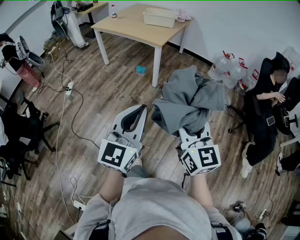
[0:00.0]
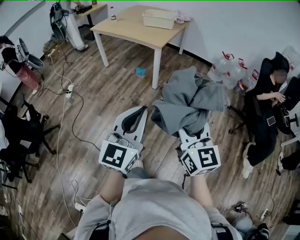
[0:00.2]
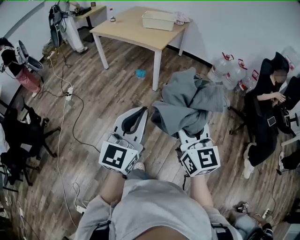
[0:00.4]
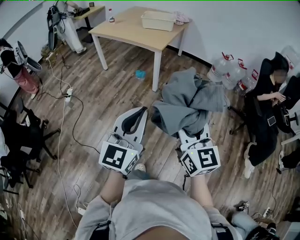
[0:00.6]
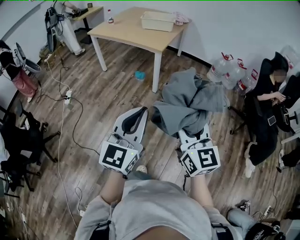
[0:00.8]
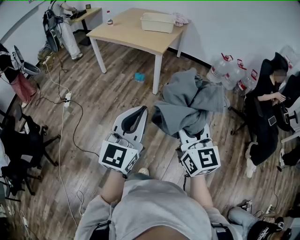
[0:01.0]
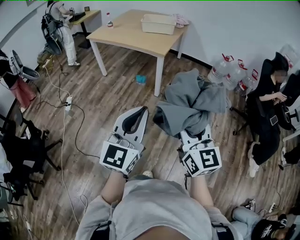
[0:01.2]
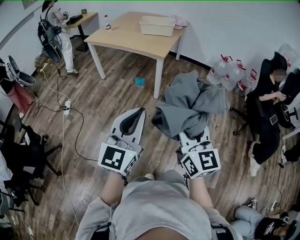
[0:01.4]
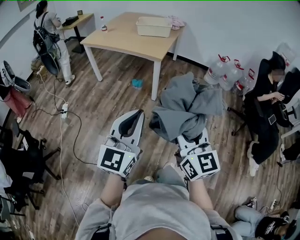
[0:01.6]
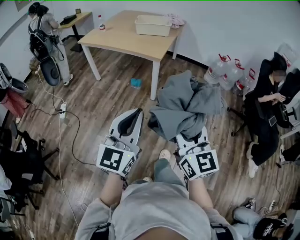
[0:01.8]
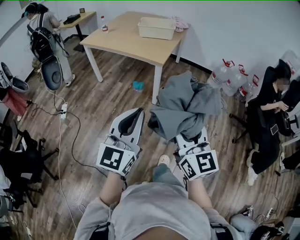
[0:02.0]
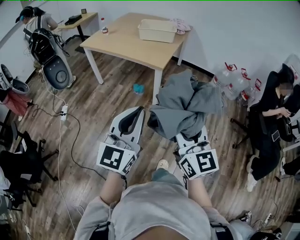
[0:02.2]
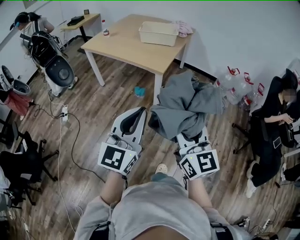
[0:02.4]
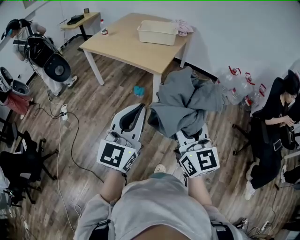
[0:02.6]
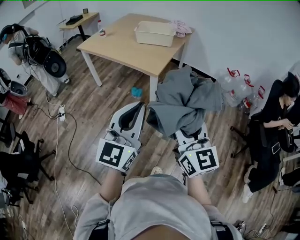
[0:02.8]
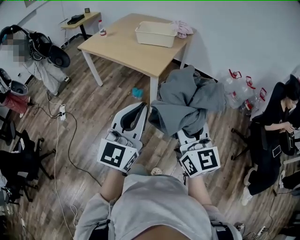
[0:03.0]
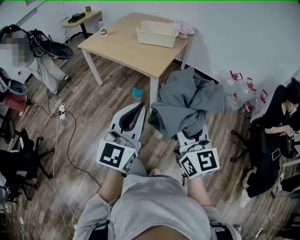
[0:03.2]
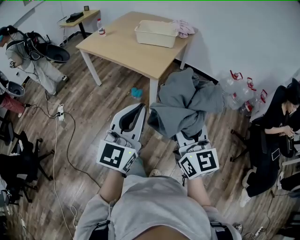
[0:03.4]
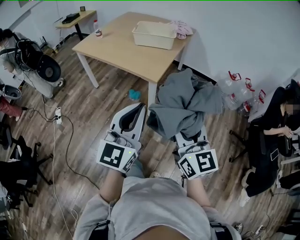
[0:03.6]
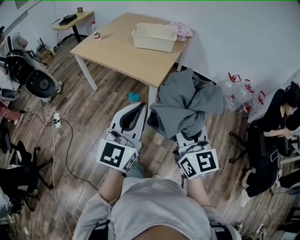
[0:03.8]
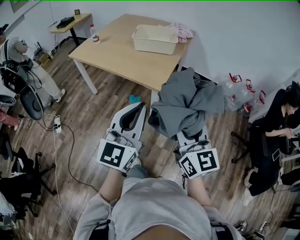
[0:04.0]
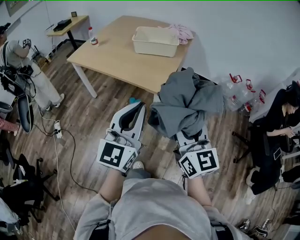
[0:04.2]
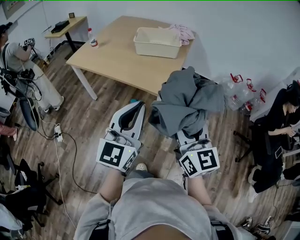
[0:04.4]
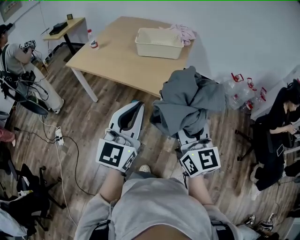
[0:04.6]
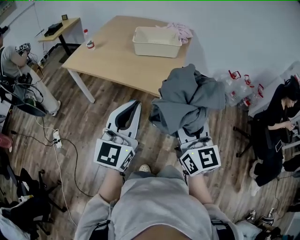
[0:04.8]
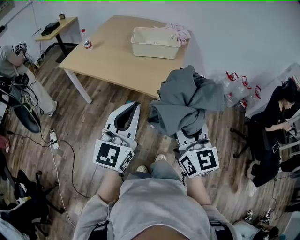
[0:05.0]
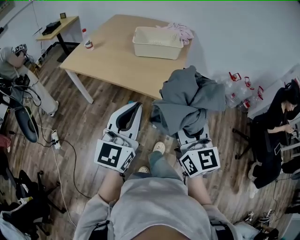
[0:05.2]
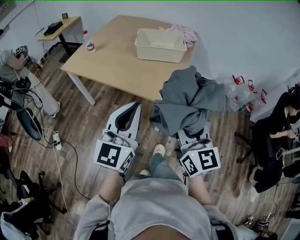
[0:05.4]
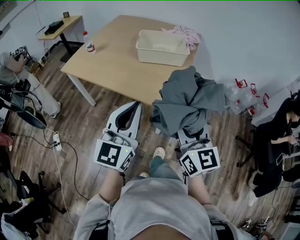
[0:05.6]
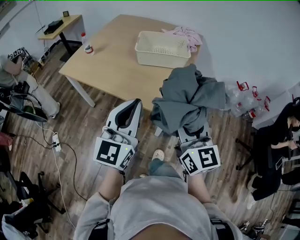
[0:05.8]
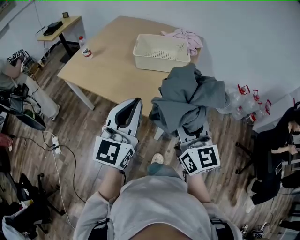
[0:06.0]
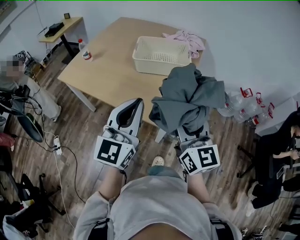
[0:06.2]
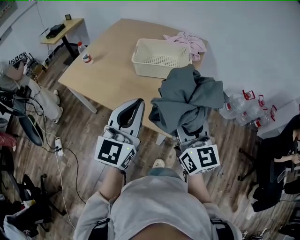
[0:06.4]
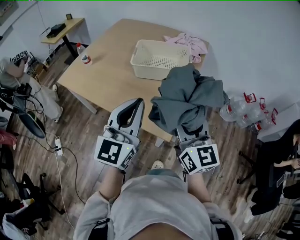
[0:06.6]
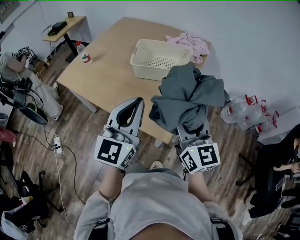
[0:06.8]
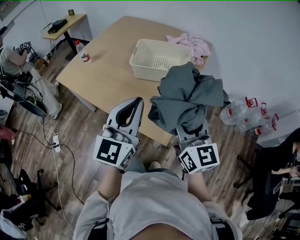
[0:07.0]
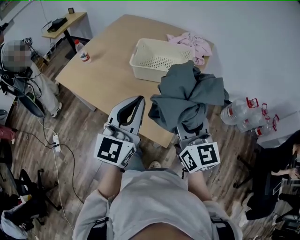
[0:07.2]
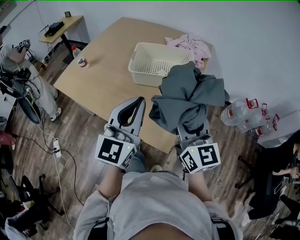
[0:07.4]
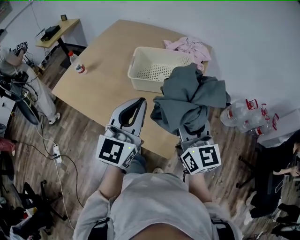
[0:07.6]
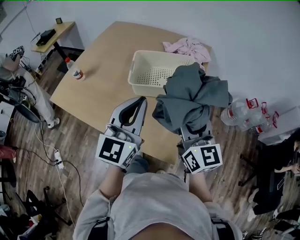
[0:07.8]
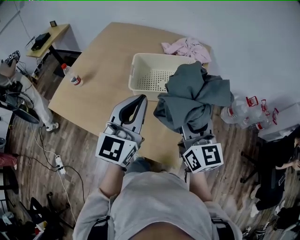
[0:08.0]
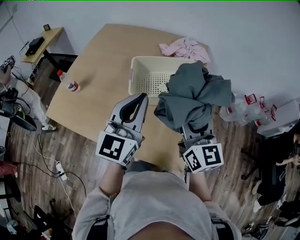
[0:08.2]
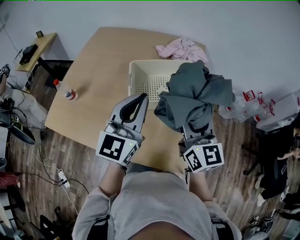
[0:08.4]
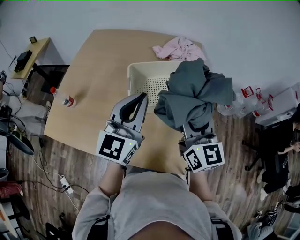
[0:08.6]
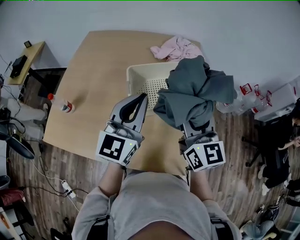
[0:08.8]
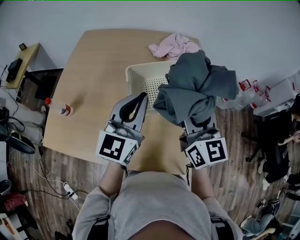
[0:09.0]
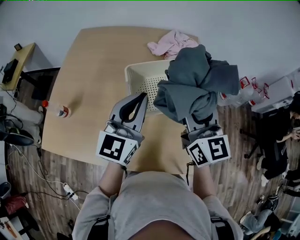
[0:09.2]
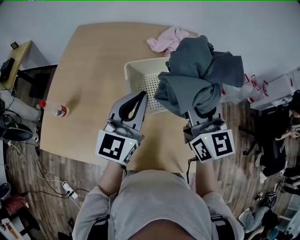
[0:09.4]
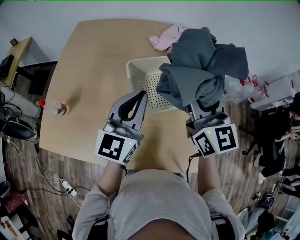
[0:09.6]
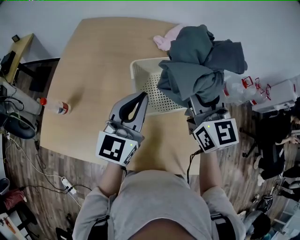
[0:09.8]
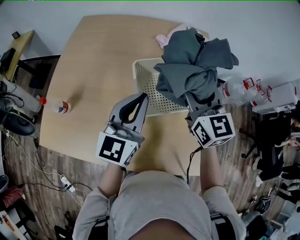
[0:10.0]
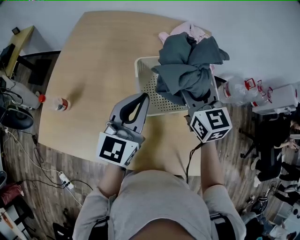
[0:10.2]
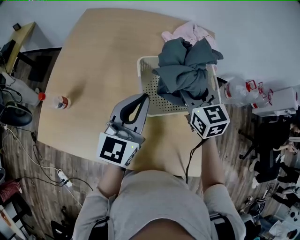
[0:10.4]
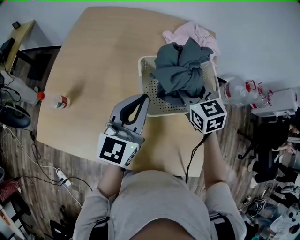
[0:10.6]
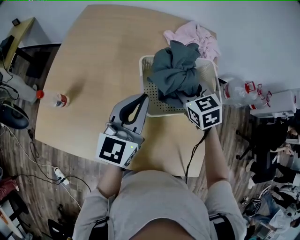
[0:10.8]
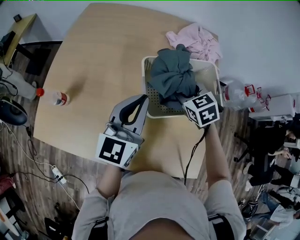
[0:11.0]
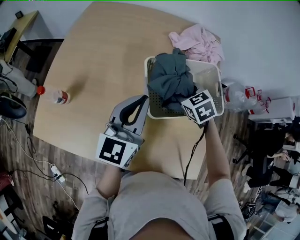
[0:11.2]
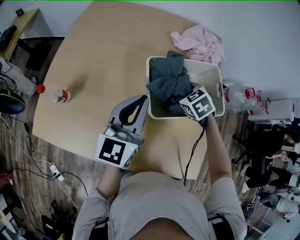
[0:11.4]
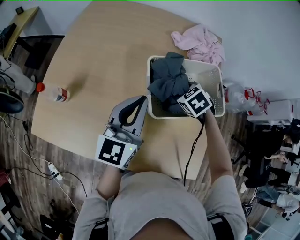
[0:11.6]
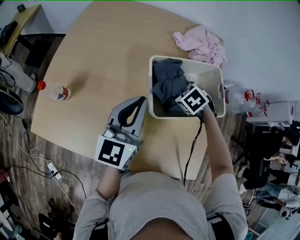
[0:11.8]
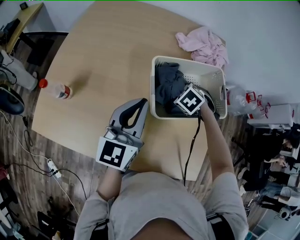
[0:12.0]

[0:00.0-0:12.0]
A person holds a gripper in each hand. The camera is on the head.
0.0 to 1.6 s: The right gripper shifts some 15 cm to the left and forward. The left gripper shifts approximately 20 cm forward and to the left.
1.6 to 3.0 s: The two grippers go approximately 25 cm forward and to the right.
3.0 to 4.4 s: The two grippers go roughly 25 cm forward and to the left.
4.4 to 6.0 s: Both grippers travel together forward, some 20 cm.
6.0 to 7.6 s: The two grippers go some 20 cm forward.
7.6 to 9.0 s: The two grippers go roughly 20 cm forward and to the left.
9.0 to 10.4 s: The right gripper is displaced forward, downward and to the left by approximately 20 cm, and changes its angle by some 30 degrees; the left gripper heads downward and to the left, covering some 10 cm.
10.4 to 12.0 s: The left gripper moves approximately 5 cm. Meanwhile the right gripper heads downward, covering roughly 20 cm, and tilts its fingers roughly 60 degrees downward.

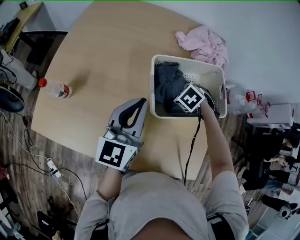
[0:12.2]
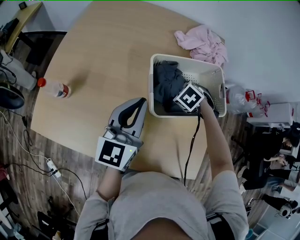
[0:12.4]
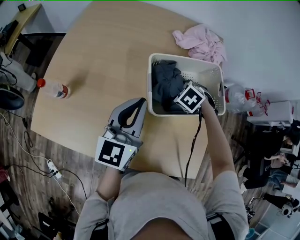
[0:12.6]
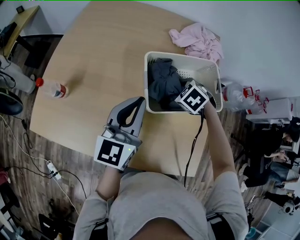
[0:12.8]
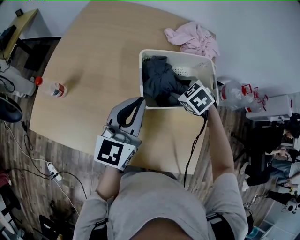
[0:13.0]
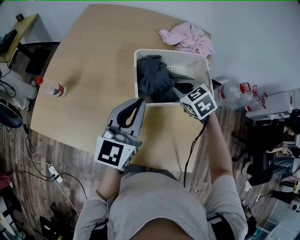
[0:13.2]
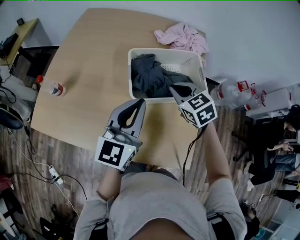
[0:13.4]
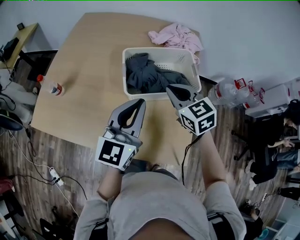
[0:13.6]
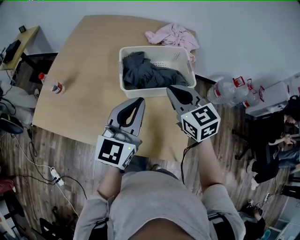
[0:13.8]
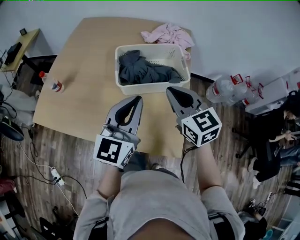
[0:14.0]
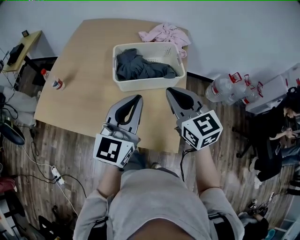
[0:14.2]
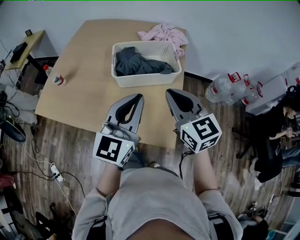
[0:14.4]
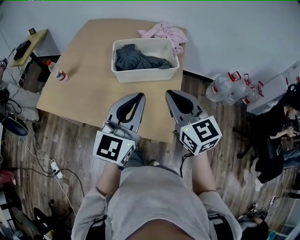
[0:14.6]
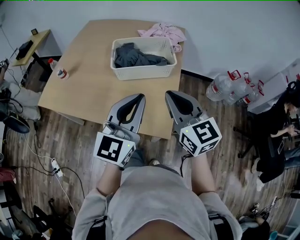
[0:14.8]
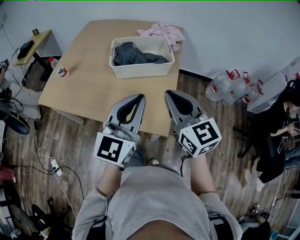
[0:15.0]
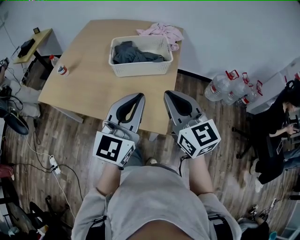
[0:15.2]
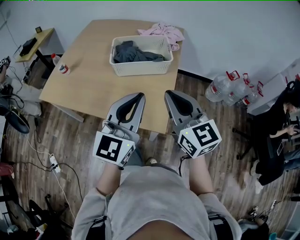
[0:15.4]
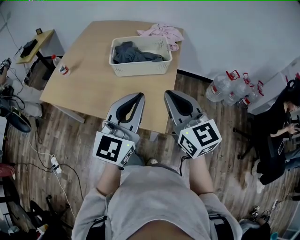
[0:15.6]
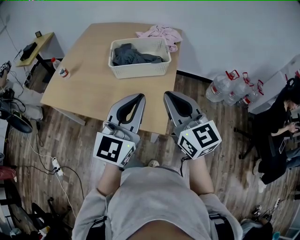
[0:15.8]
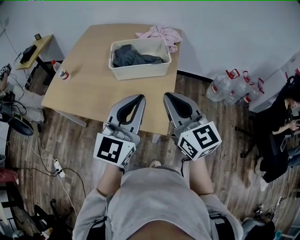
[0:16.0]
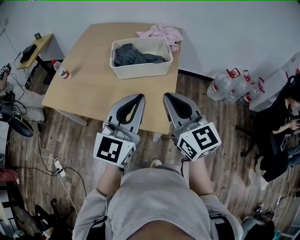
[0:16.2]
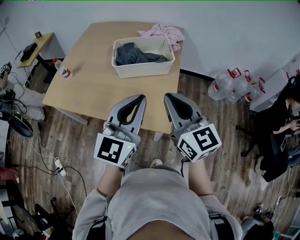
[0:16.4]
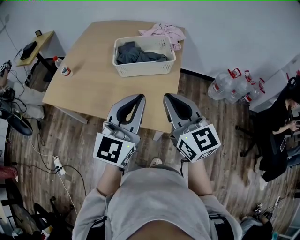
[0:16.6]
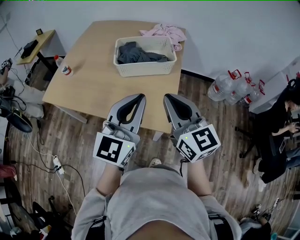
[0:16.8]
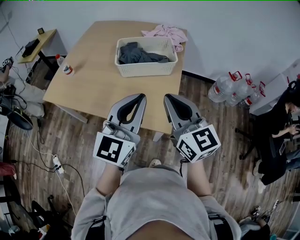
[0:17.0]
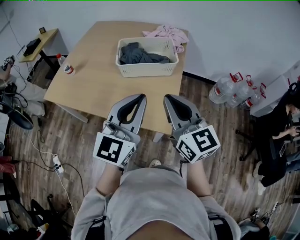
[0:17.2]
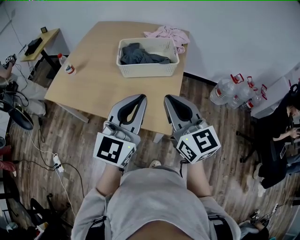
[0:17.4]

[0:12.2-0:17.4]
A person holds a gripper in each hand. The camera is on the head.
12.2 to 14.0 s: The right gripper heads upward, covering about 25 cm, tips its fingers upward by roughly 60 degrees, and closes up; the left gripper ends up some 25 cm from where it was.
14.0 to 15.6 s: The grippers both shift backward and to the right by approximately 20 cm.
15.6 to 17.4 s: The grippers move only a little.

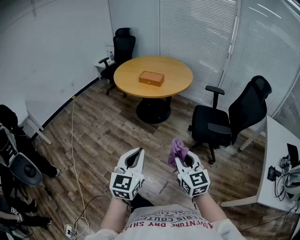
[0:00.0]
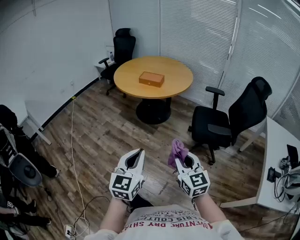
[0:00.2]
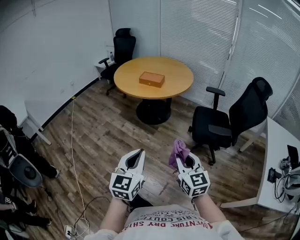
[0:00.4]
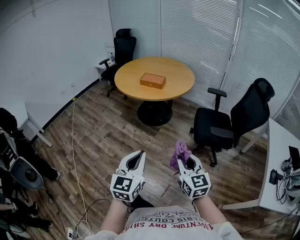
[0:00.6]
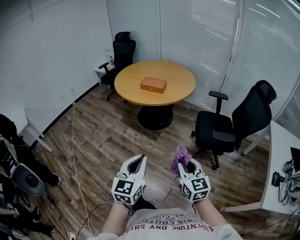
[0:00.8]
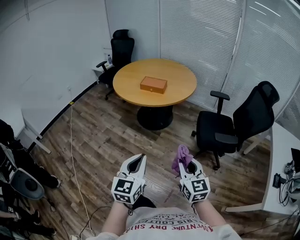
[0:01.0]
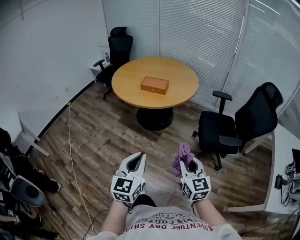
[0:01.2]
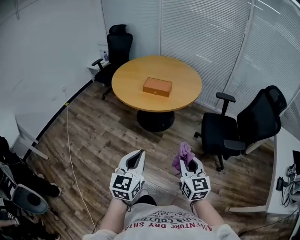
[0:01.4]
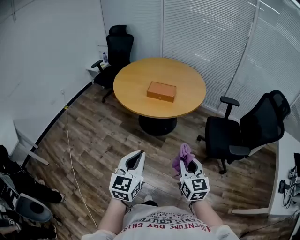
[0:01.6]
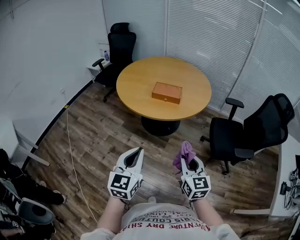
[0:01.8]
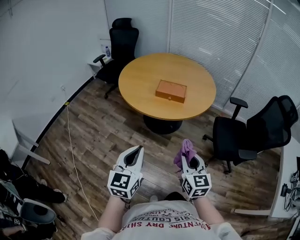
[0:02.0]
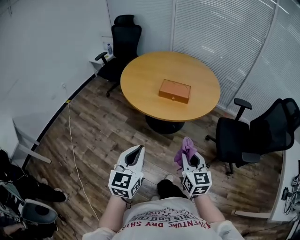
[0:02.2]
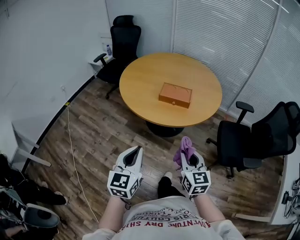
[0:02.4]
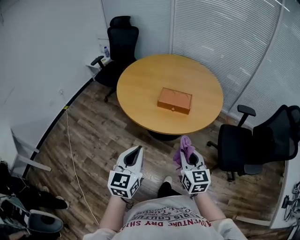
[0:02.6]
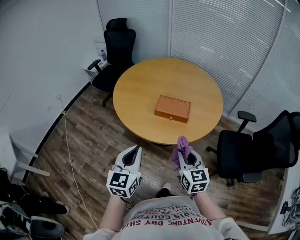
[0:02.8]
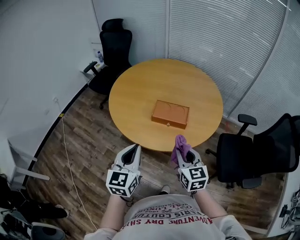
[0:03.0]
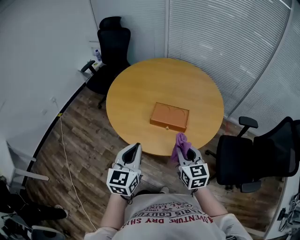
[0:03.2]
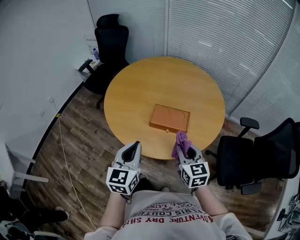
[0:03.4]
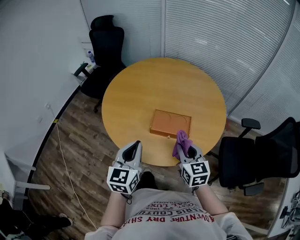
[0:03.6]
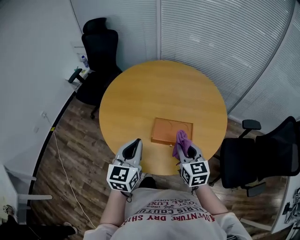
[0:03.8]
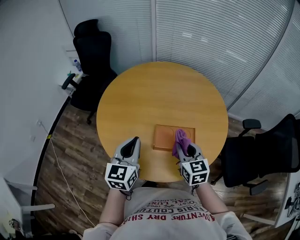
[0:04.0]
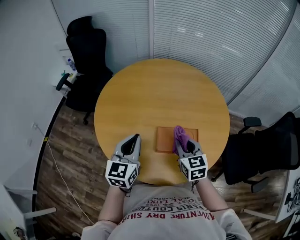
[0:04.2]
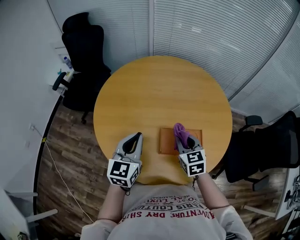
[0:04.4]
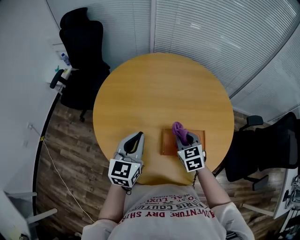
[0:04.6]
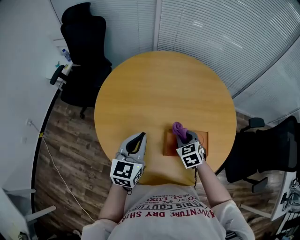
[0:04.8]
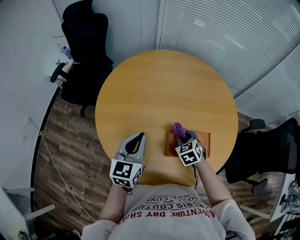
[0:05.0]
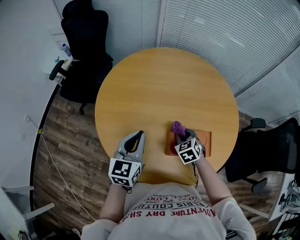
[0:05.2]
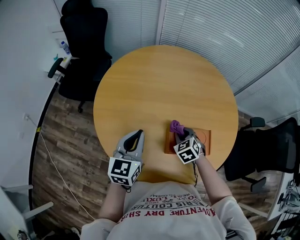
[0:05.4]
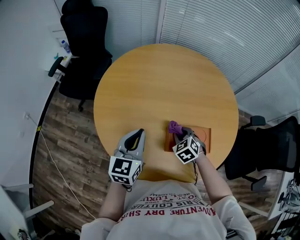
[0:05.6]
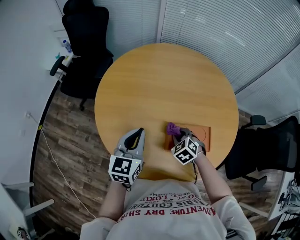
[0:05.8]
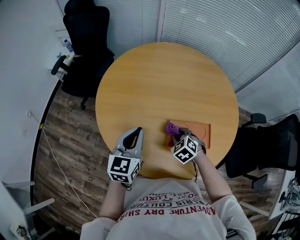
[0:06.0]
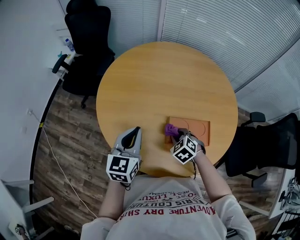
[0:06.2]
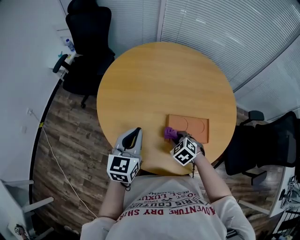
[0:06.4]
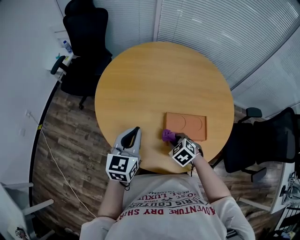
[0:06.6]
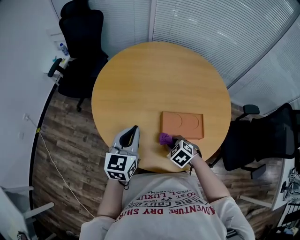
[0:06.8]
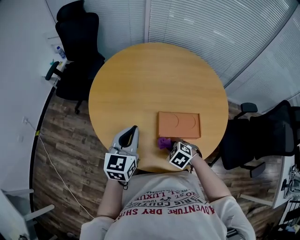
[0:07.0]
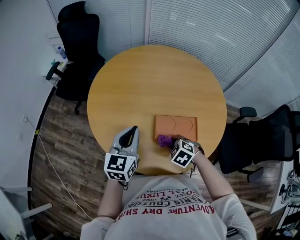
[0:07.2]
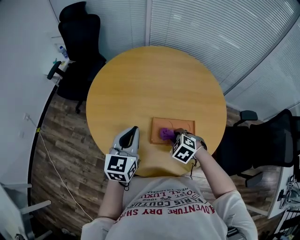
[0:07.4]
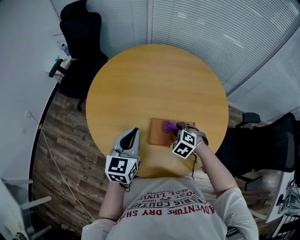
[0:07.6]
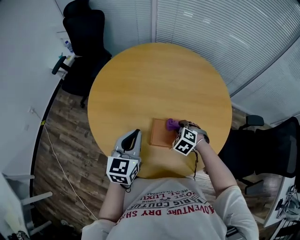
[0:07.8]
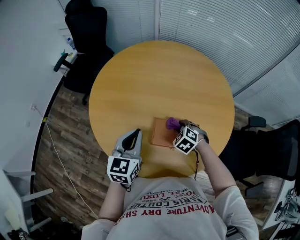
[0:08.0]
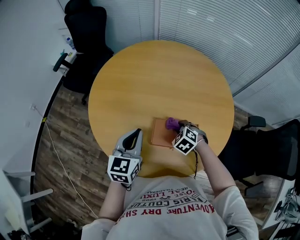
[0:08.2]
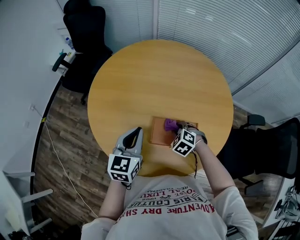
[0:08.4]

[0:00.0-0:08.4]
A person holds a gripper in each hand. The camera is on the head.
0.0 to 1.4 s: Both grippers travel together forward and to the left, about 25 cm.
1.4 to 2.8 s: The left gripper is displaced forward and to the left by some 40 cm. Meanwhile the right gripper moves forward, roughly 35 cm.
2.8 to 4.2 s: The two grippers go about 35 cm forward.
4.2 to 5.6 s: The right gripper heads downward, forward and to the left, covering about 20 cm, and swivels roughly 40 degrees; the left gripper shifts about 10 cm downward, forward and to the left.
5.6 to 7.0 s: The left gripper heads backward, covering about 5 cm; the right gripper shifts approximately 15 cm backward, and rotates roughly 20 degrees.
7.0 to 8.4 s: The left gripper heads to the right, covering about 5 cm. The right gripper heads forward and to the right, covering approximately 15 cm.
